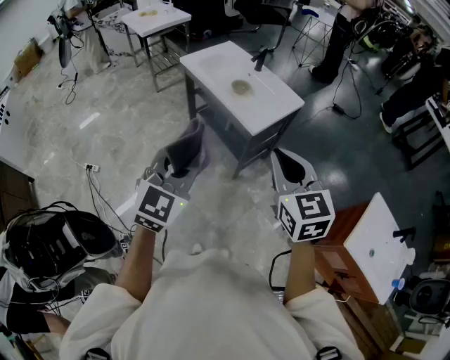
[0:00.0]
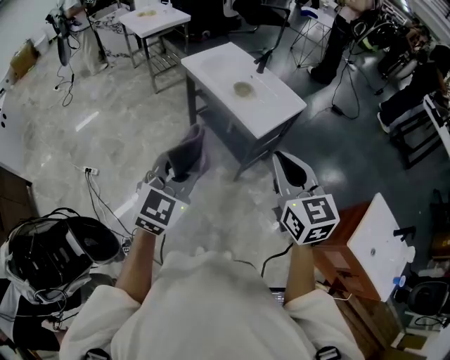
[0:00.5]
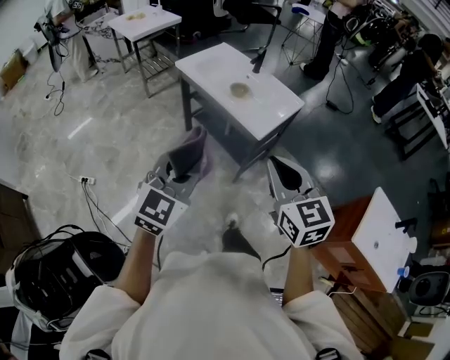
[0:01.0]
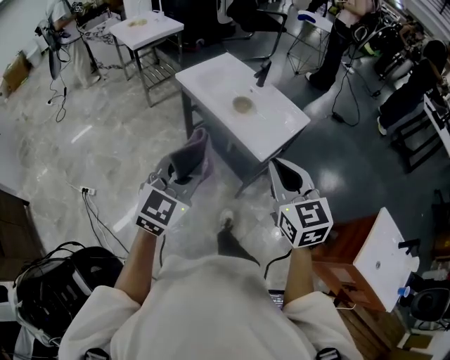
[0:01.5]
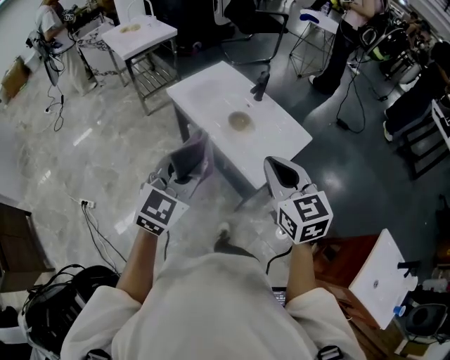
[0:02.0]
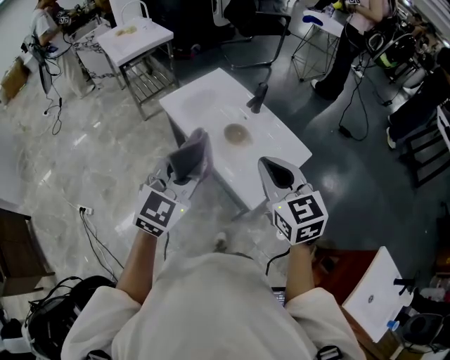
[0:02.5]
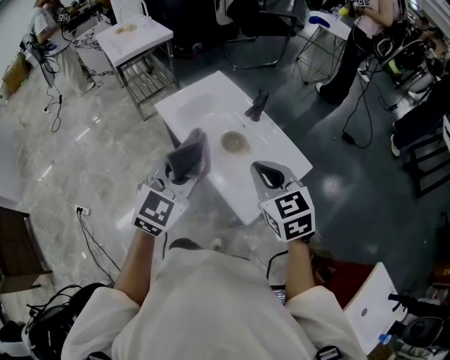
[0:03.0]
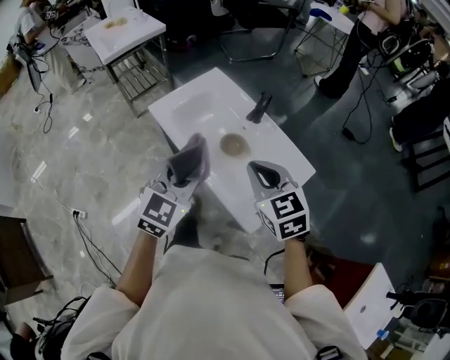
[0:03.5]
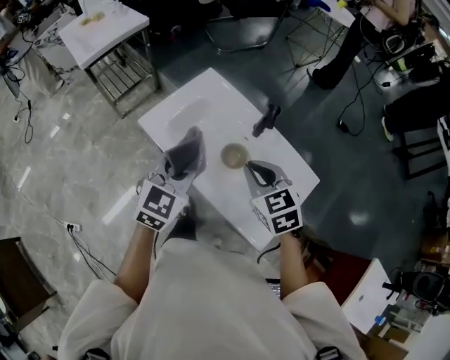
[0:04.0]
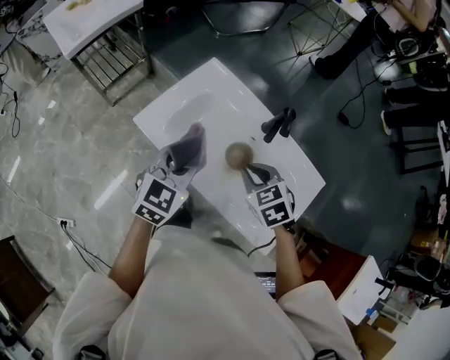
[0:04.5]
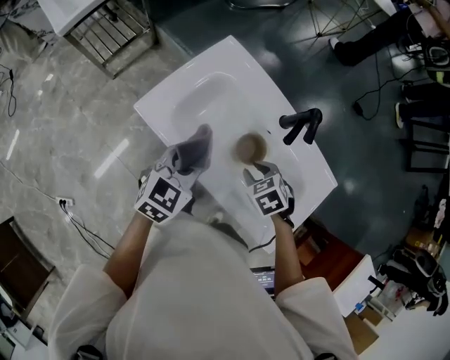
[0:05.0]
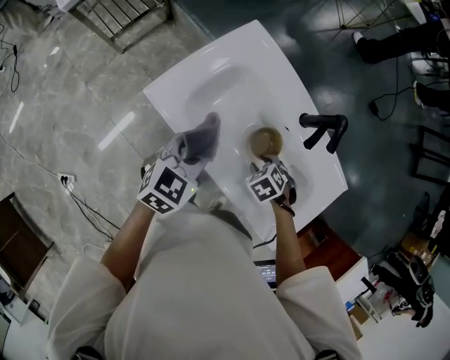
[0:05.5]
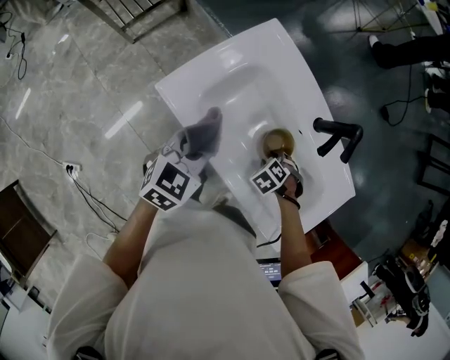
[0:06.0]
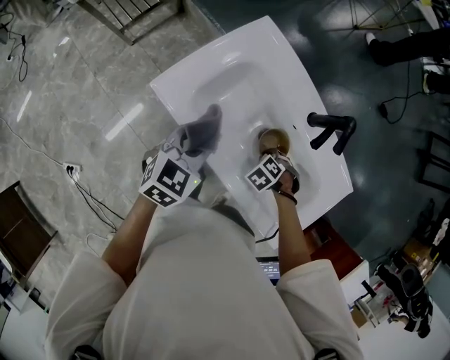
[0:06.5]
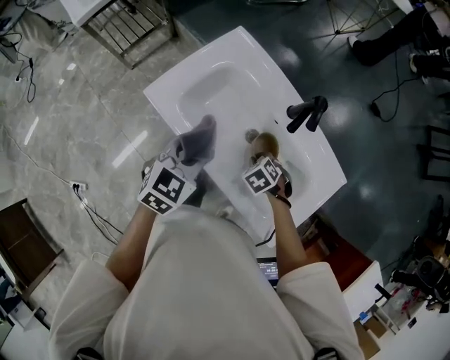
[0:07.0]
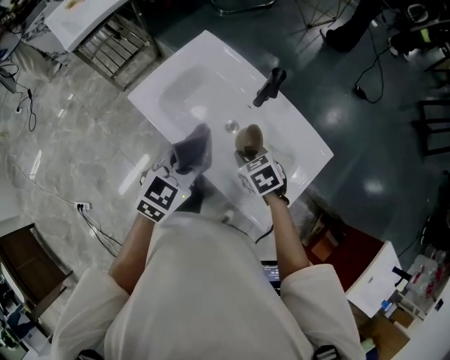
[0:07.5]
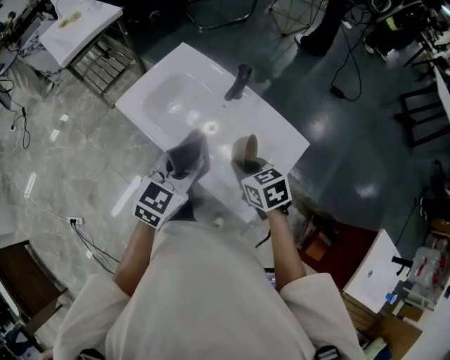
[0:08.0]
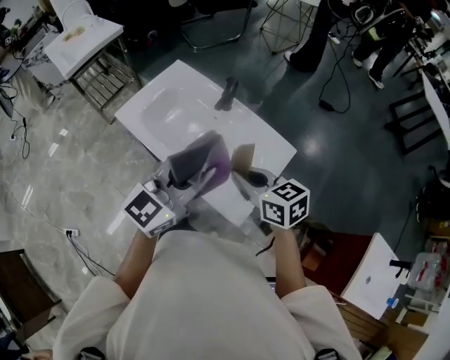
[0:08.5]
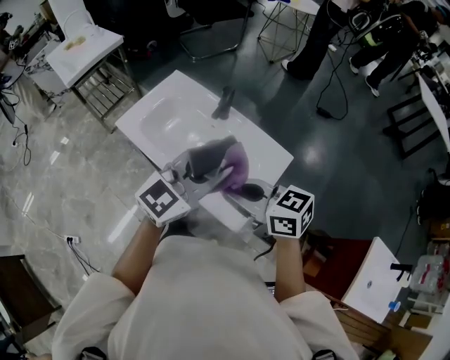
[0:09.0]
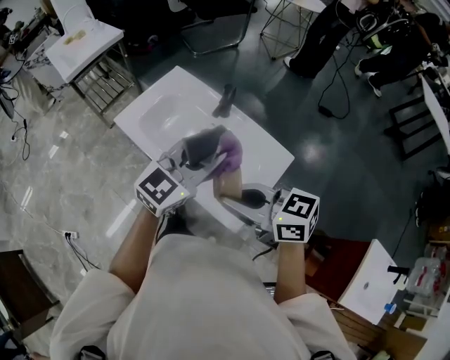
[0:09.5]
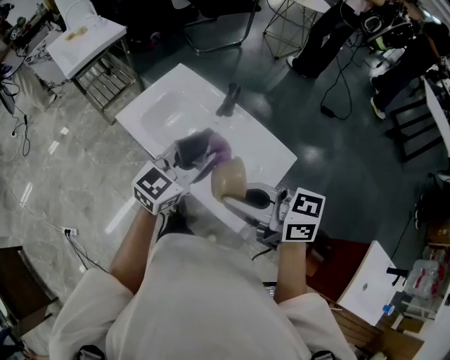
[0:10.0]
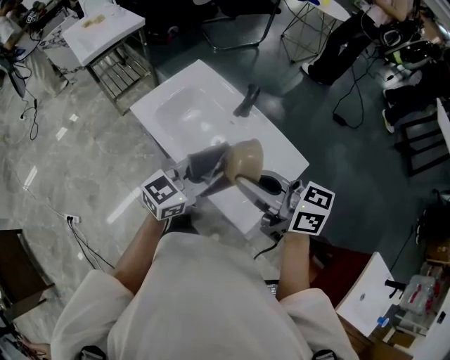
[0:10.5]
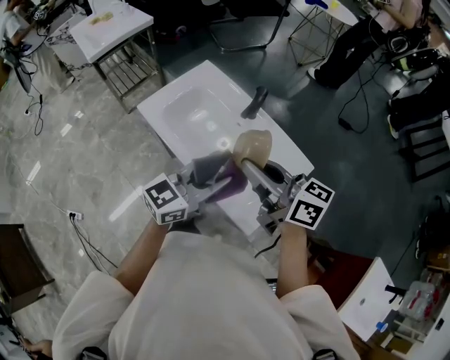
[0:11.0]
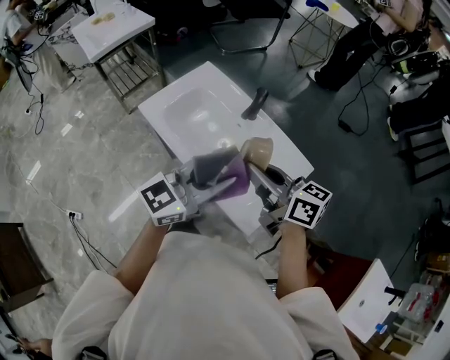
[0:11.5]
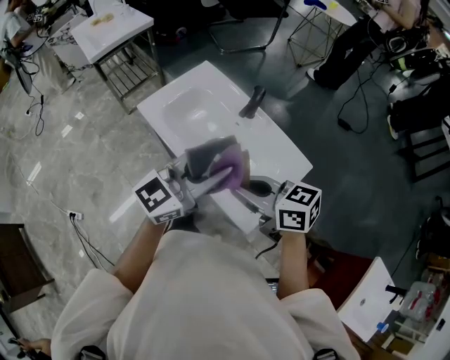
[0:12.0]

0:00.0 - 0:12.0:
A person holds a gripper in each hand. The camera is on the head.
0:00.0 - 0:02.0: Both grippers move forward, roughly 30 cm.
0:02.0 - 0:04.0: The two grippers go about 40 cm forward. The right gripper swivels about 20 degrees.
0:04.0 - 0:06.0: The right gripper moves downward, approximately 40 cm, points its fingers some 50 degrees further downward, and opens its fingers; the left gripper is displaced downward by roughly 20 cm, and rotates some 20 degrees.
0:06.0 - 0:08.0: The left gripper ends up roughly 35 cm from where it was, while the right gripper goes approximately 25 cm upward, tilts its fingers some 40 degrees upward, and closes.
0:08.0 - 0:10.0: The left gripper shifts approximately 10 cm upward and to the right. Meanwhile the right gripper travels upward and backward by some 25 cm, and points its fingers roughly 40 degrees further upward.
0:10.0 - 0:12.0: The right gripper shifts about 5 cm downward, while the left gripper changes place by approximately 10 cm.

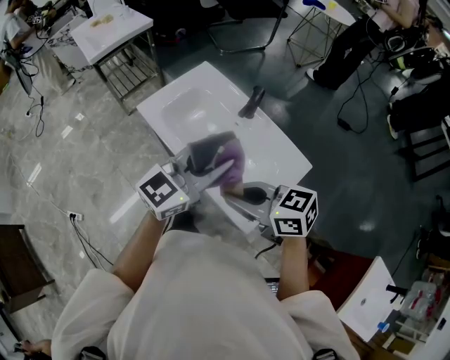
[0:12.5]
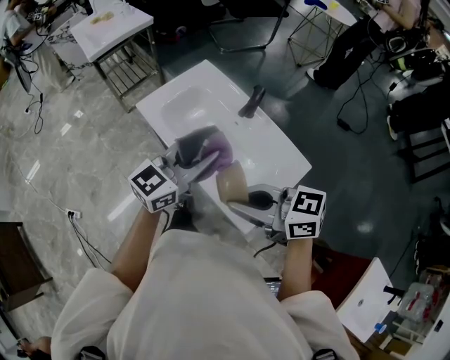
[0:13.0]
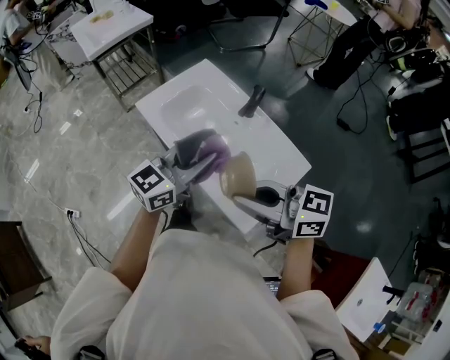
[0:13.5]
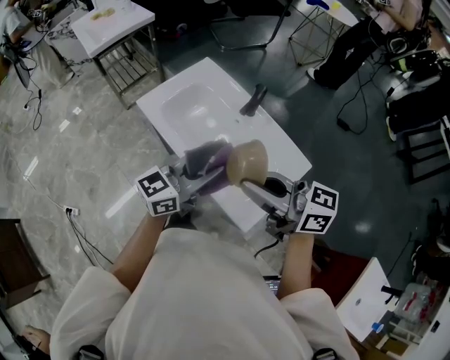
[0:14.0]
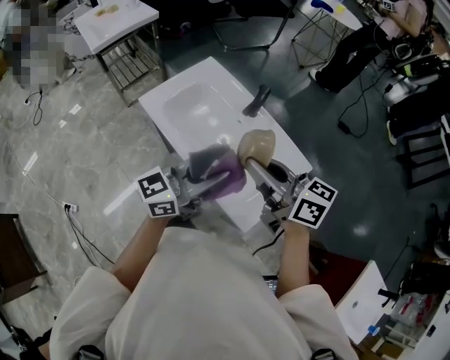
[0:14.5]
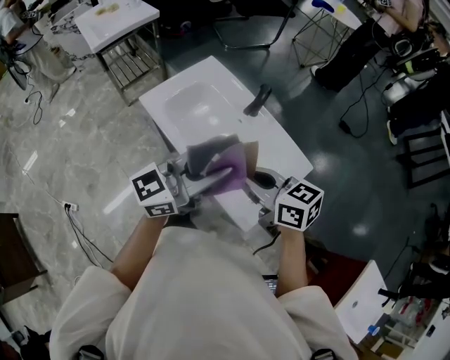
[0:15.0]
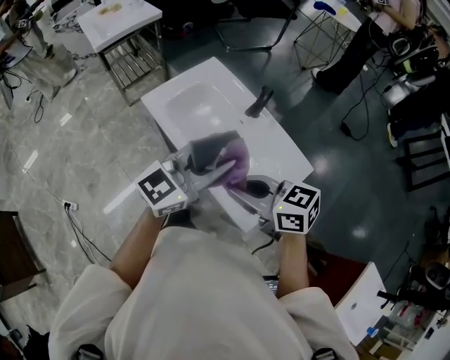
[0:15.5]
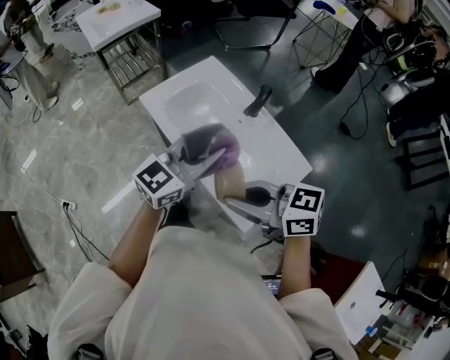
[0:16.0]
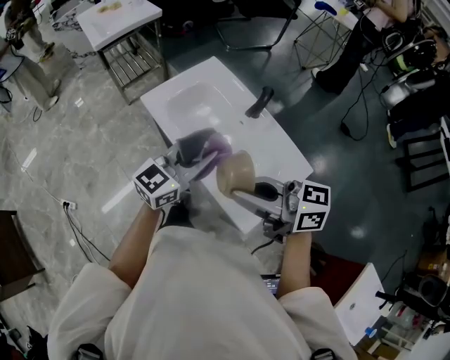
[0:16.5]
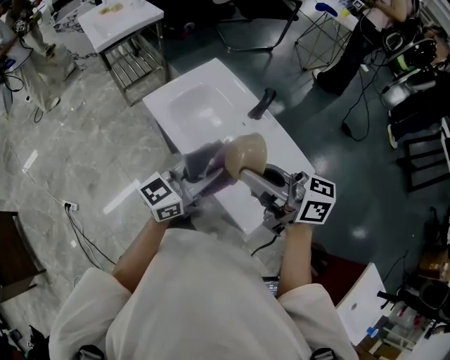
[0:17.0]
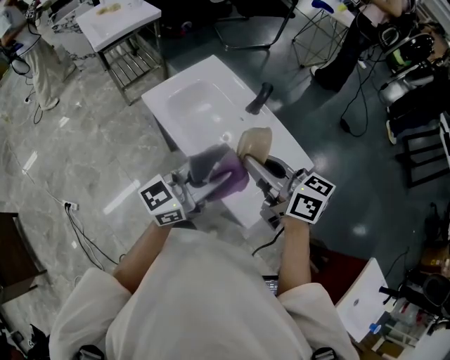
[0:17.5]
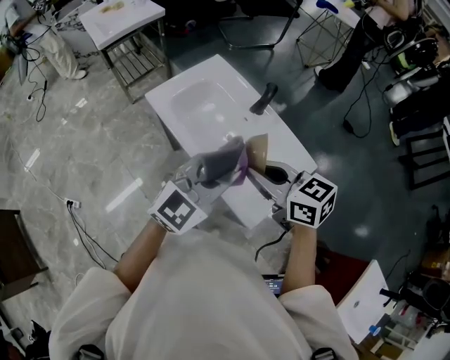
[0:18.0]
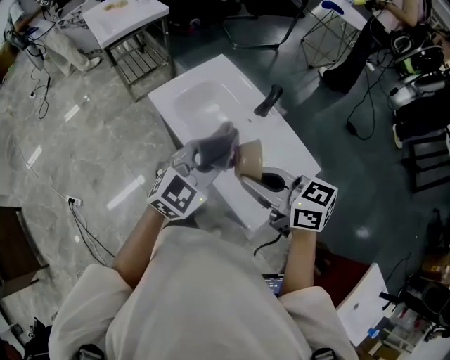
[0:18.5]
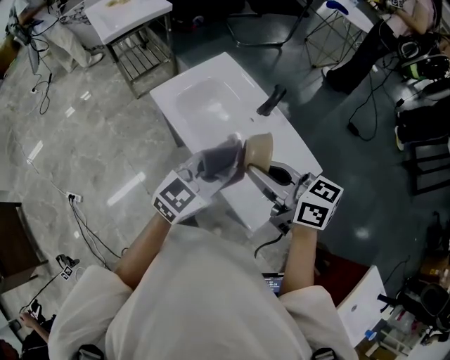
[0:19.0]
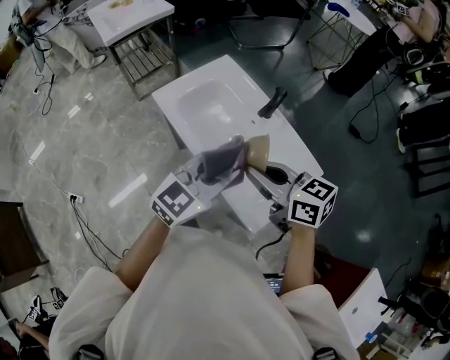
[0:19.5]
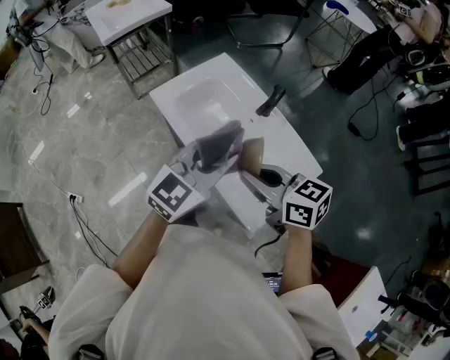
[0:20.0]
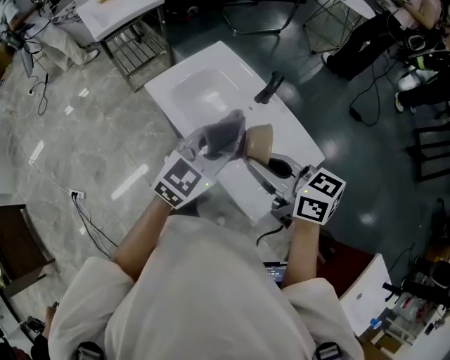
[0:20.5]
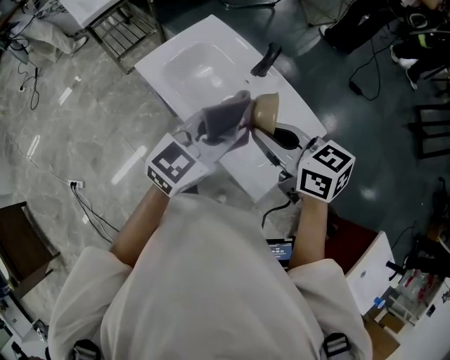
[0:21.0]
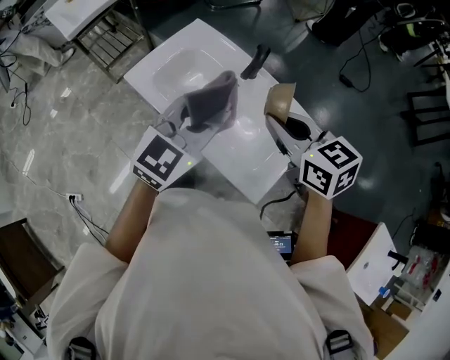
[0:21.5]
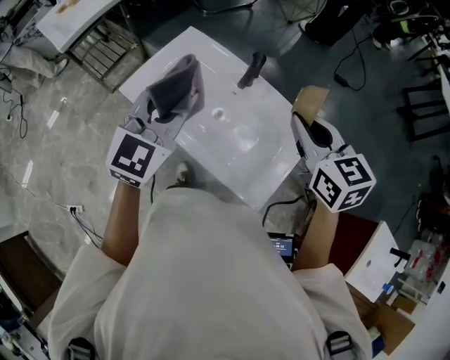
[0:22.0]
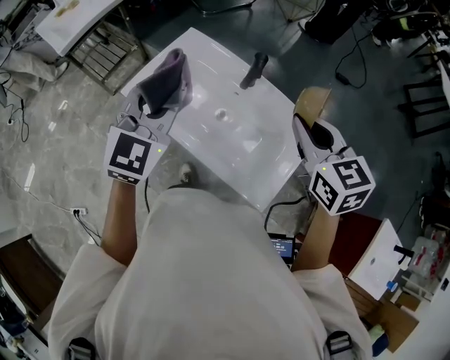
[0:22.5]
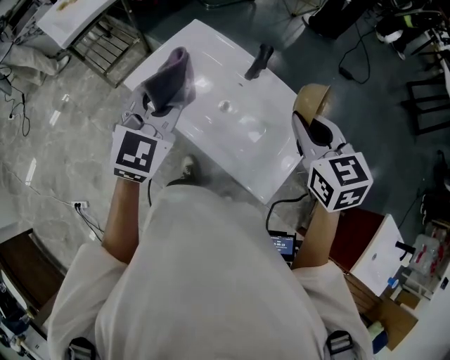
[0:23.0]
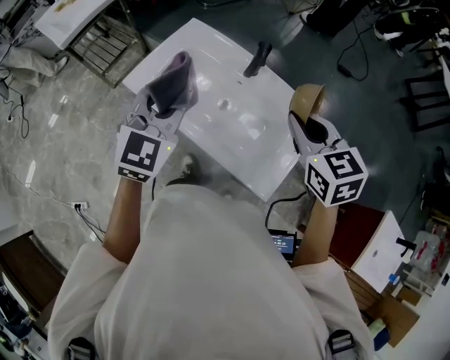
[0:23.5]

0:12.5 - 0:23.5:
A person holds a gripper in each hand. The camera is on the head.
0:12.5 - 0:14.5: The left gripper turns by roughly 20 degrees; the right gripper ends up about 10 cm from where it was, and rotates some 30 degrees.
0:14.5 - 0:16.0: The left gripper ends up about 5 cm from where it was, and swivels approximately 20 degrees. The right gripper shifts by some 10 cm, and turns by about 30 degrees.
0:16.0 - 0:18.0: The right gripper changes place by some 5 cm, and changes its angle by roughly 20 degrees, while the left gripper moves some 5 cm, and swivels some 20 degrees.
0:18.0 - 0:20.0: The left gripper goes roughly 5 cm forward.
0:20.0 - 0:21.5: The right gripper is displaced to the right and forward by about 10 cm, and rotates approximately 20 degrees.
0:21.5 - 0:23.5: The left gripper travels to the left by about 10 cm. The right gripper turns by approximately 20 degrees.

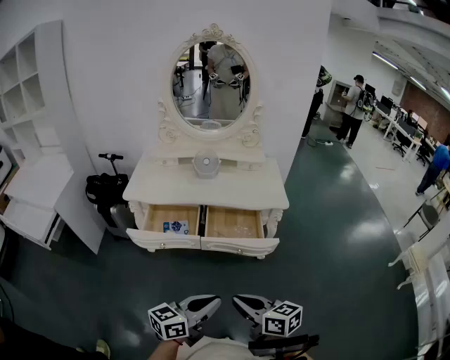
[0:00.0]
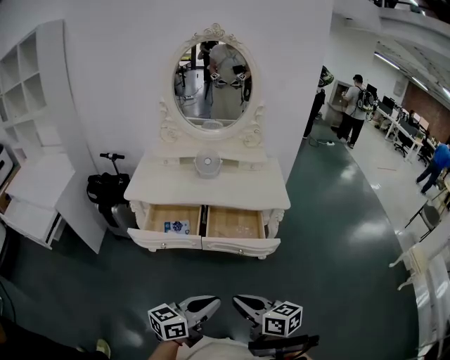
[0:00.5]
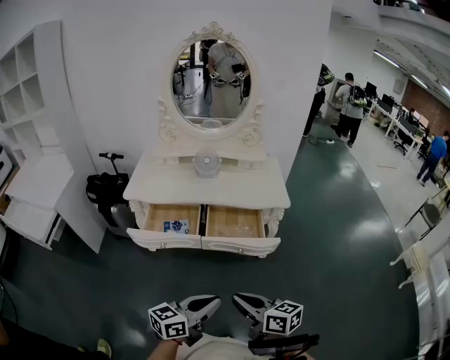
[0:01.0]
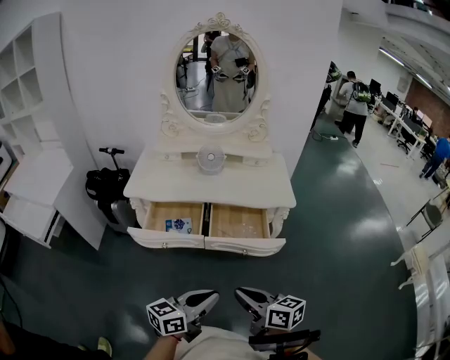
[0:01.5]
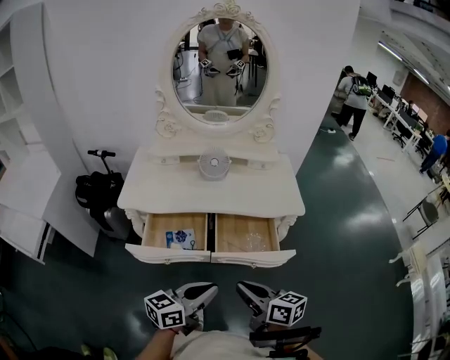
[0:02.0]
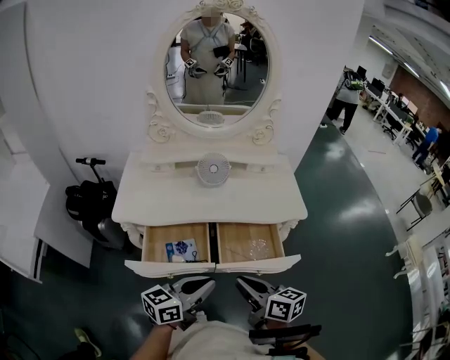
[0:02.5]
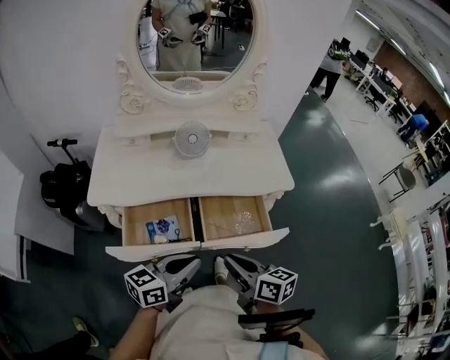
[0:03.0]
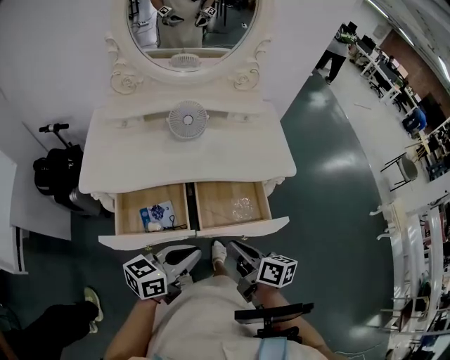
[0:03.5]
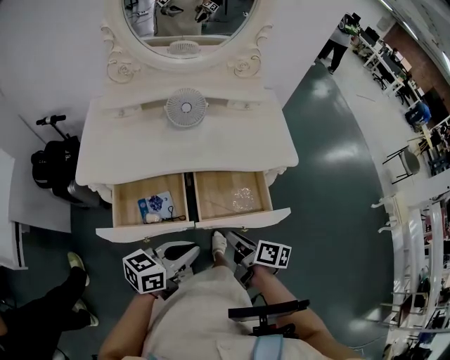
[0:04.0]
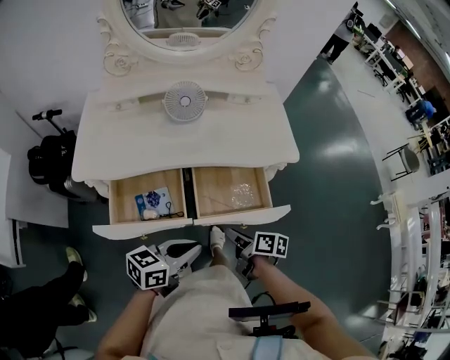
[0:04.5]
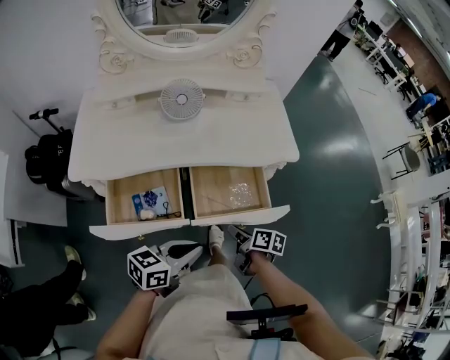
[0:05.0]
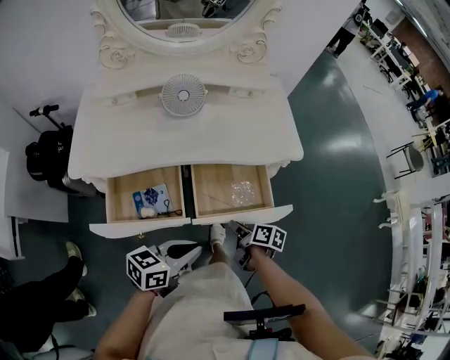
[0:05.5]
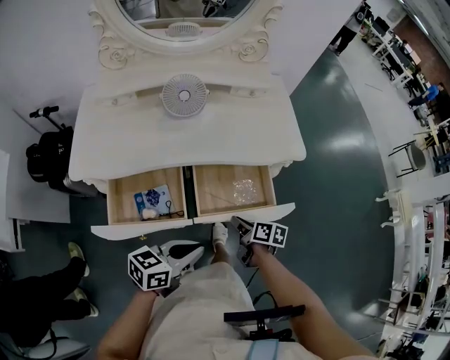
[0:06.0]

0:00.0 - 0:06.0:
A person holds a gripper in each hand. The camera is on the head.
0:00.0 - 0:02.0: The left gripper goes roughly 20 cm forward and to the left. Meanwhile the right gripper is displaced forward by roughly 15 cm.
0:02.0 - 0:04.0: The right gripper travels downward and forward by about 20 cm, and changes its angle by some 30 degrees; the left gripper moves forward and downward, approximately 15 cm.
0:04.0 - 0:06.0: The right gripper is displaced downward and forward by approximately 10 cm.
